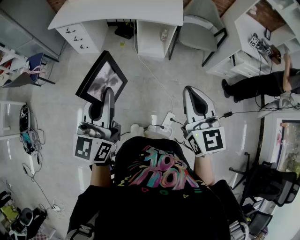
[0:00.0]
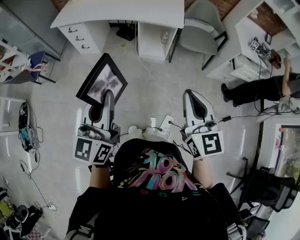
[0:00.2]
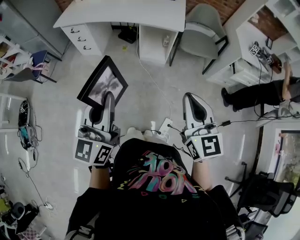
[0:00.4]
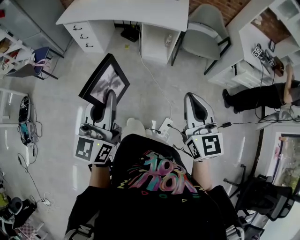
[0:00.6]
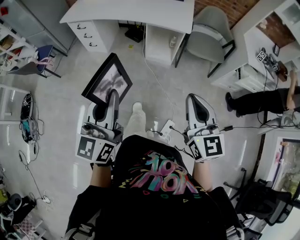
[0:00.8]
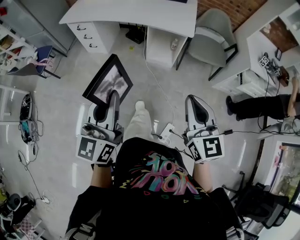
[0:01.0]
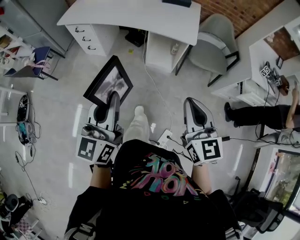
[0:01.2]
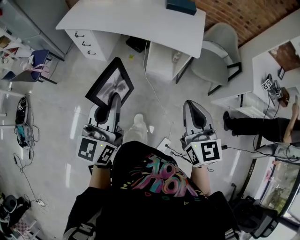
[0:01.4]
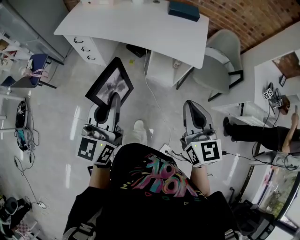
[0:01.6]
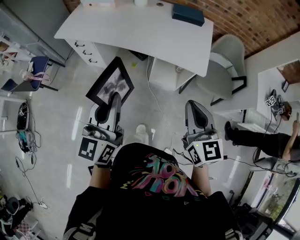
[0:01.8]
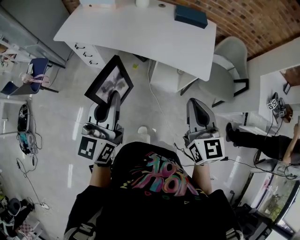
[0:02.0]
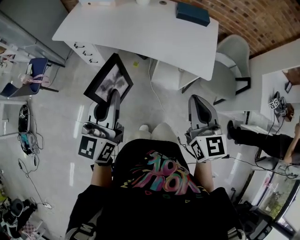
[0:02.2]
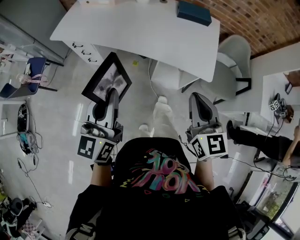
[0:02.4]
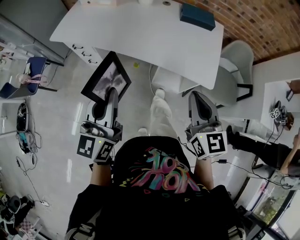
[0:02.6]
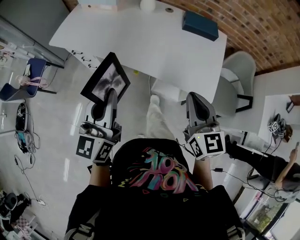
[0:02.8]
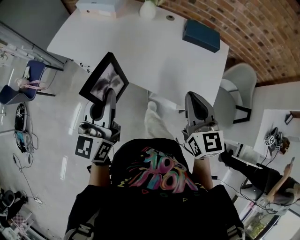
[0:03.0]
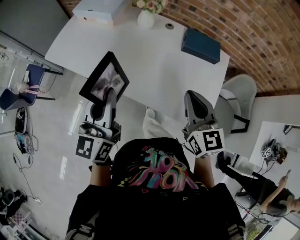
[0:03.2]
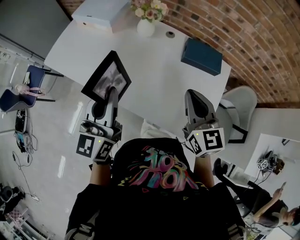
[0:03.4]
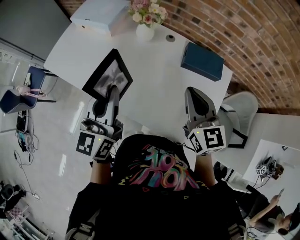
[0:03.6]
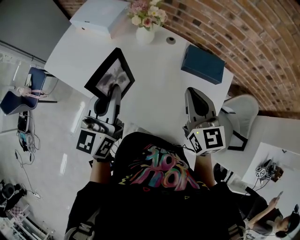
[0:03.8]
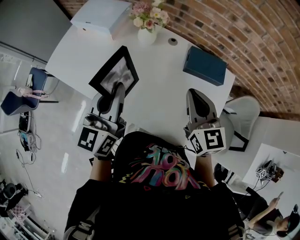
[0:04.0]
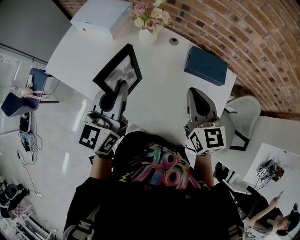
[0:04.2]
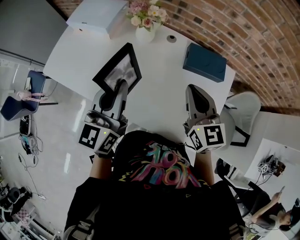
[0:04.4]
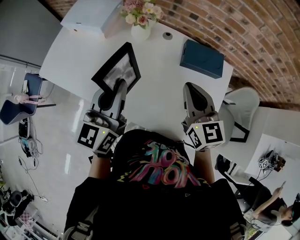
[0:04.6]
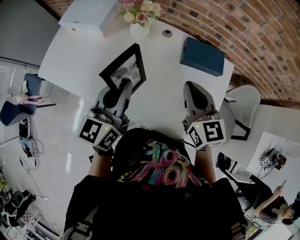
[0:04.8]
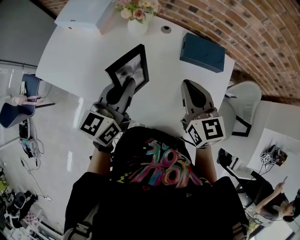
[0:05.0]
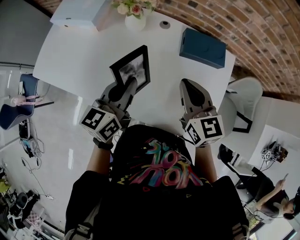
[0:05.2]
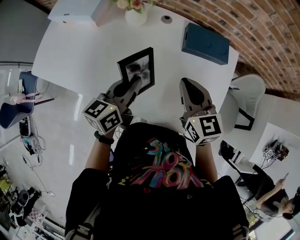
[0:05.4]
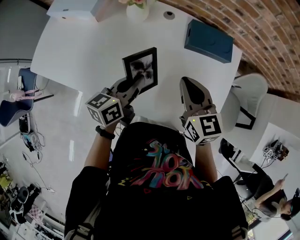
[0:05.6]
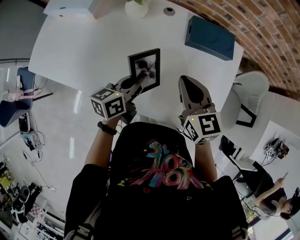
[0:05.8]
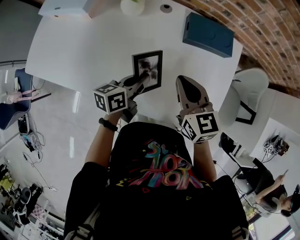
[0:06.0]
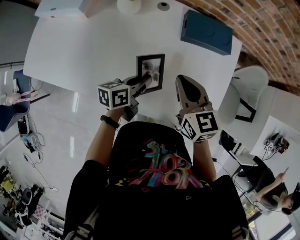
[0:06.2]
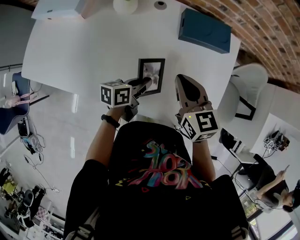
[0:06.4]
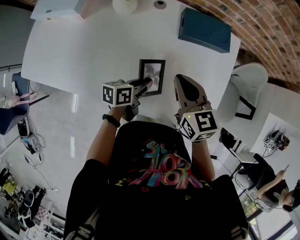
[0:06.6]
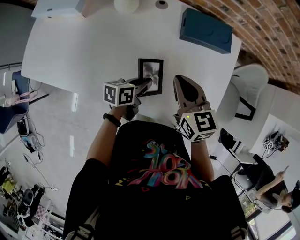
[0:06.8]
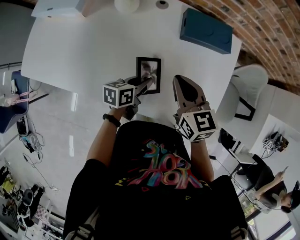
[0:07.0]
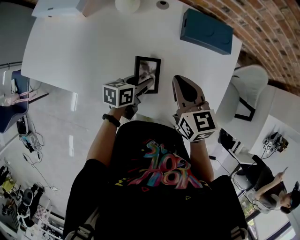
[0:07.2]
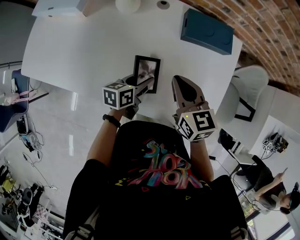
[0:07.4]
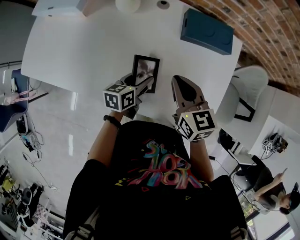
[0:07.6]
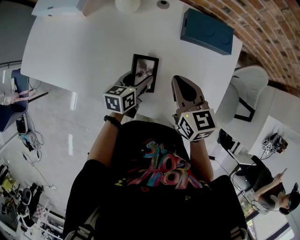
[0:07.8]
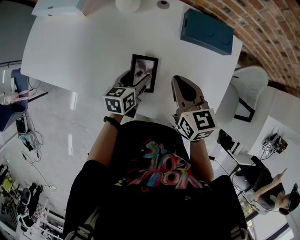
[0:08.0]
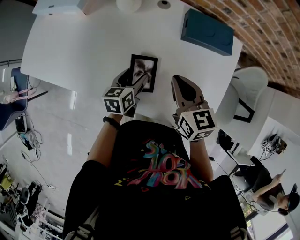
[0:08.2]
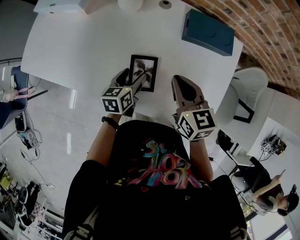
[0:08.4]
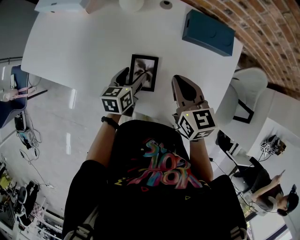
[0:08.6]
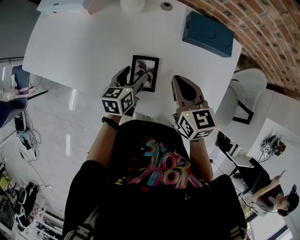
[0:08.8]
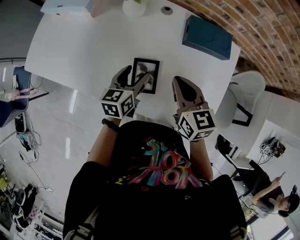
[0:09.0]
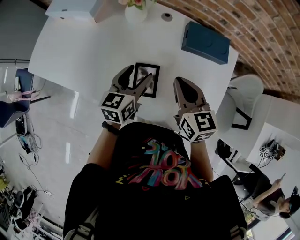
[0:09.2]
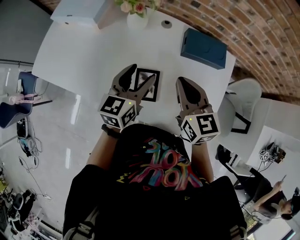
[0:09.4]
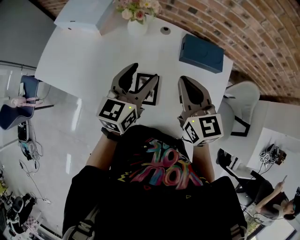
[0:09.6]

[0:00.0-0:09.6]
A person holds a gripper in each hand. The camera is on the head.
0:00.0 to 0:01.6: The grippers both shift forward by some 30 cm.
0:01.6 to 0:03.2: The pair of grippers is taken forward, some 50 cm.
0:03.2 to 0:04.8: The left gripper heads forward and to the right, covering roughly 20 cm. The right gripper is displaced forward by roughly 20 cm.
0:04.8 to 0:06.4: The left gripper shifts roughly 25 cm downward, and turns by roughly 50 degrees, while the right gripper moves downward, approximately 10 cm.
0:06.4 to 0:08.0: The left gripper shifts by approximately 5 cm, turns by some 30 degrees, and opens its fingers.
0:08.0 to 0:09.6: The right gripper goes about 15 cm upward; the left gripper heads upward, covering about 25 cm, and swivels about 30 degrees.

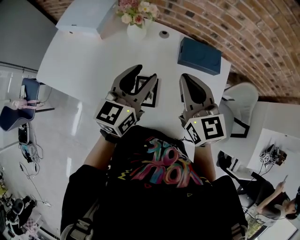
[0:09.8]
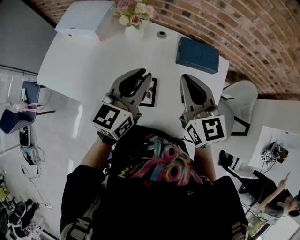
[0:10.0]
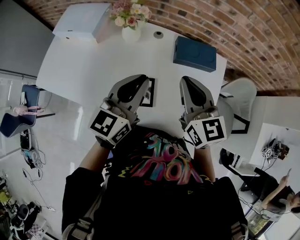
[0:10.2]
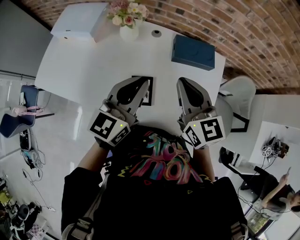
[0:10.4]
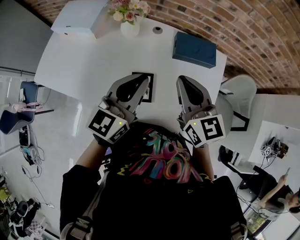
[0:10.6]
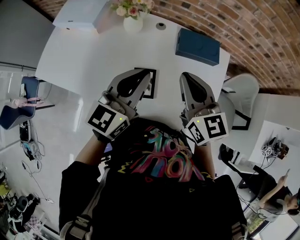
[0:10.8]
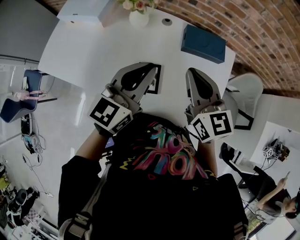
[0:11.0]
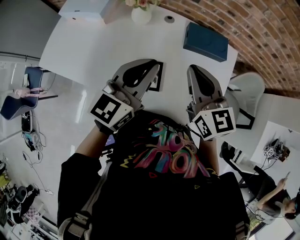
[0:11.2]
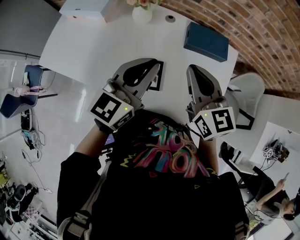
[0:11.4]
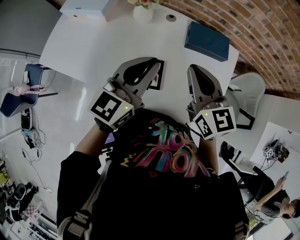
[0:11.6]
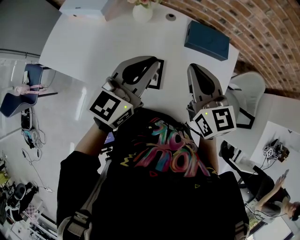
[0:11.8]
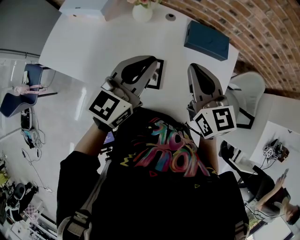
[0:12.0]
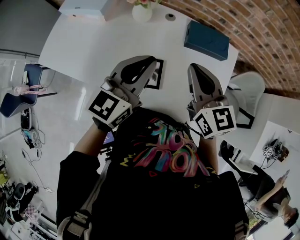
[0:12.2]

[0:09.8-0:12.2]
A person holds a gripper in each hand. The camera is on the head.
0:09.8 to 0:11.0: The left gripper moves about 5 cm, and closes its fingers.
0:11.0 to 0:12.2: Neither gripper changes place.

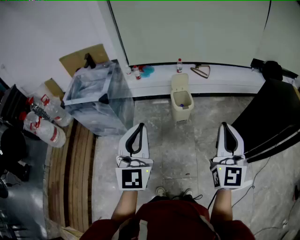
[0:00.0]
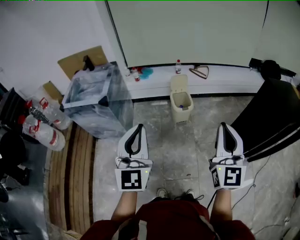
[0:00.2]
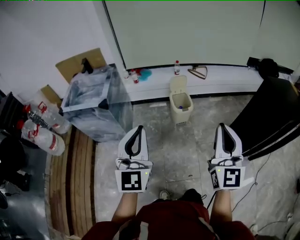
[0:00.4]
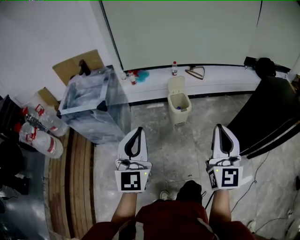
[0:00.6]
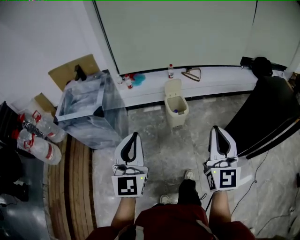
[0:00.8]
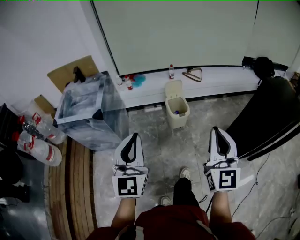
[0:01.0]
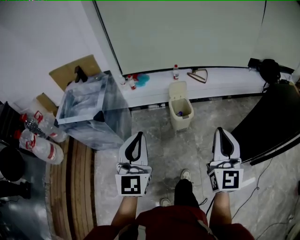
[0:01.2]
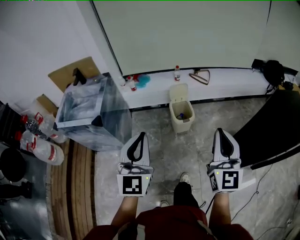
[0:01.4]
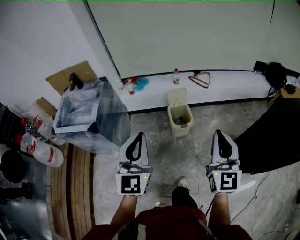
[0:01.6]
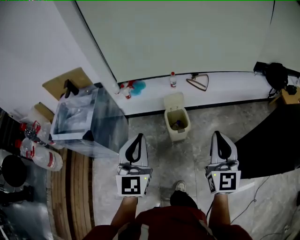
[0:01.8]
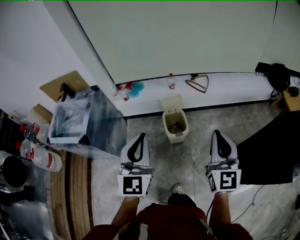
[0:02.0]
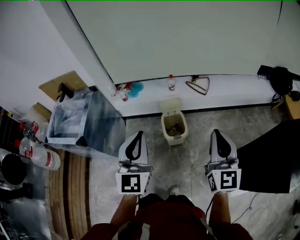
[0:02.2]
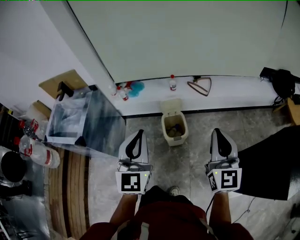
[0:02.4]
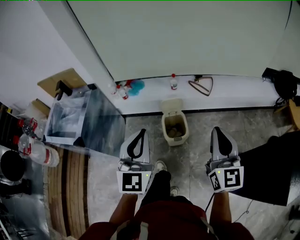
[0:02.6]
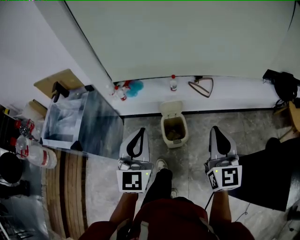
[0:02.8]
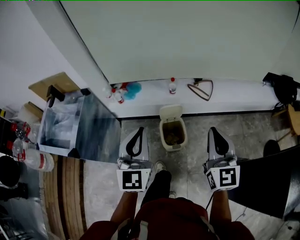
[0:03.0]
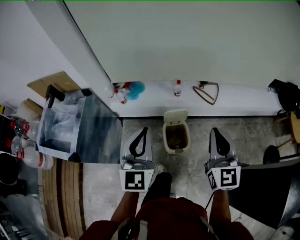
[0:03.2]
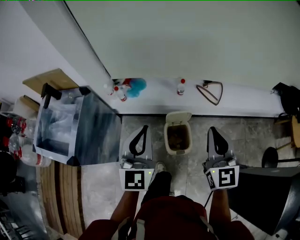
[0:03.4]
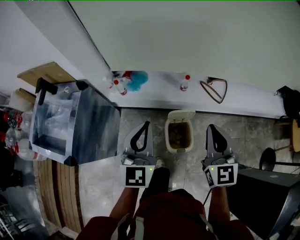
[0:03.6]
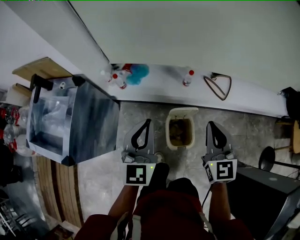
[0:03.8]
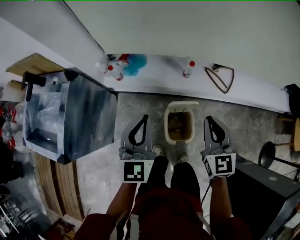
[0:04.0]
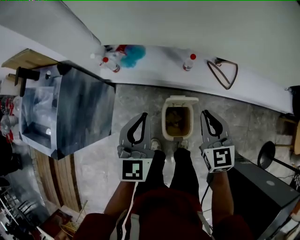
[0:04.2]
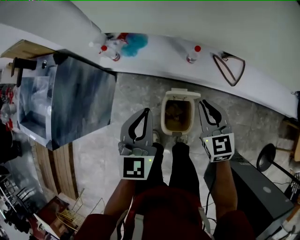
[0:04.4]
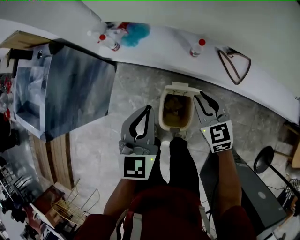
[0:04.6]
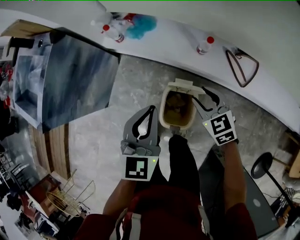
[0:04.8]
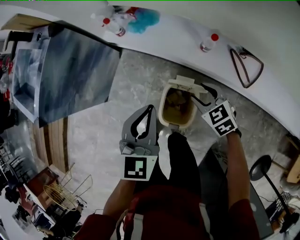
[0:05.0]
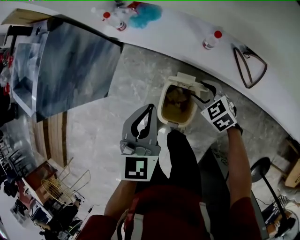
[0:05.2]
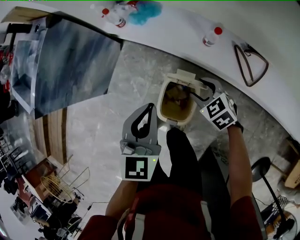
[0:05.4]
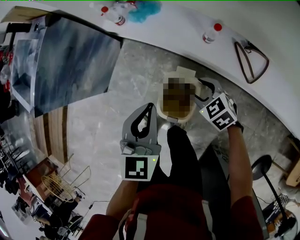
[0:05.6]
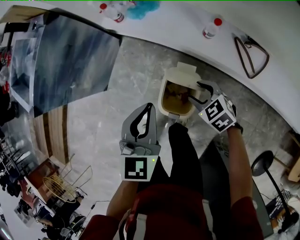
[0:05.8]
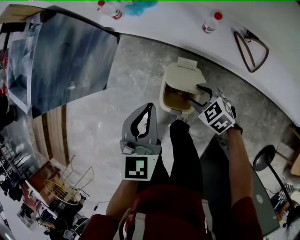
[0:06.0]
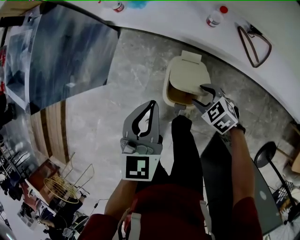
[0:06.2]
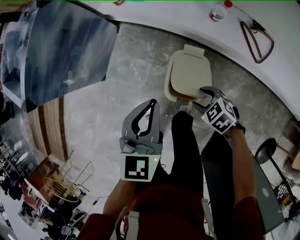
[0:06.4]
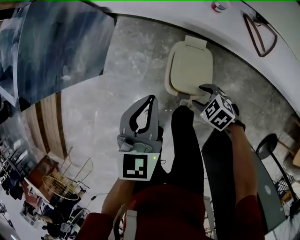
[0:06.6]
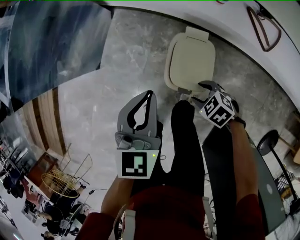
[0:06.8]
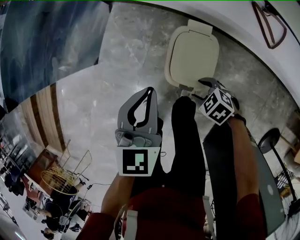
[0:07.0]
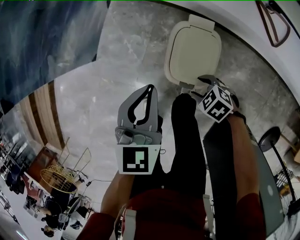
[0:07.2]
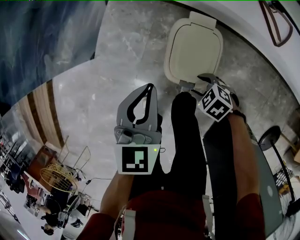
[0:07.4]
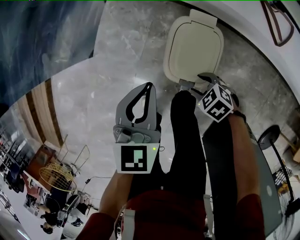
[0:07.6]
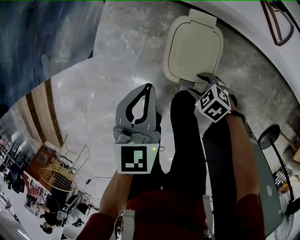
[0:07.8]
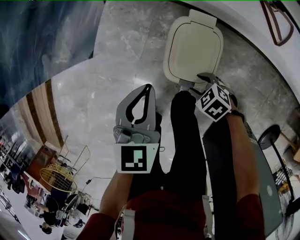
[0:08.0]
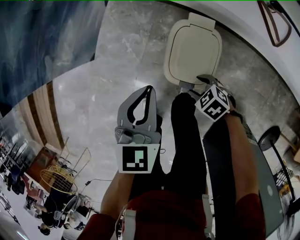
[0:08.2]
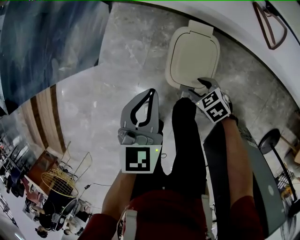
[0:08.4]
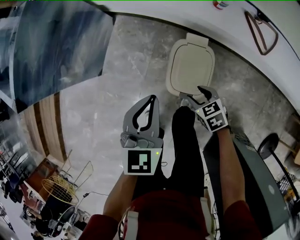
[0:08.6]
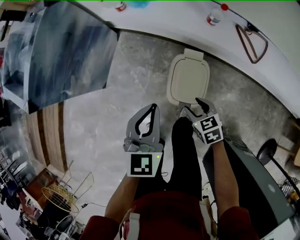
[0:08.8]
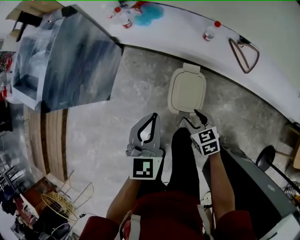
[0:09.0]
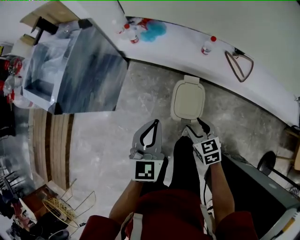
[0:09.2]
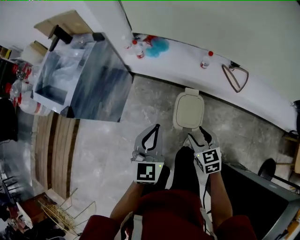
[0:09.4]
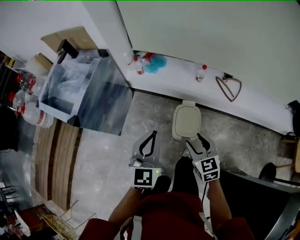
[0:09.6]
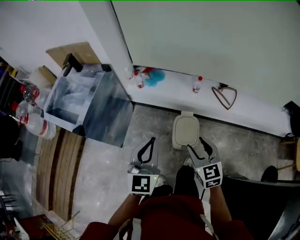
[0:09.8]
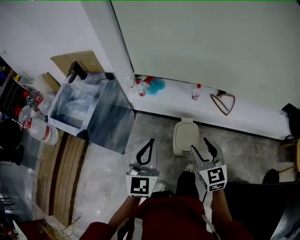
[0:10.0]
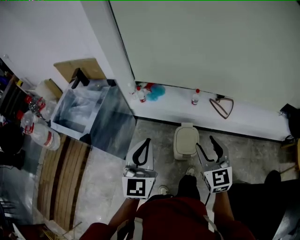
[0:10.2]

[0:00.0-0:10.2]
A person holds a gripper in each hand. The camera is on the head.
0:00.0 to 0:01.4: Both grippers travel together forward, roughly 15 cm.
0:01.4 to 0:03.0: The two grippers go about 35 cm forward.
0:03.0 to 0:04.4: Both grippers move forward and downward, some 35 cm. The right gripper rotates some 40 degrees; the left gripper turns by roughly 20 degrees.
0:04.4 to 0:05.8: The left gripper travels downward by about 10 cm. The right gripper travels downward by some 20 cm, rotates some 50 degrees, and opens its fingers.
0:05.8 to 0:07.2: The right gripper goes some 25 cm downward, to the left and backward, and turns by roughly 20 degrees; the left gripper shifts roughly 15 cm downward and to the left.
0:07.2 to 0:08.8: The two grippers go roughly 10 cm upward. The right gripper turns by roughly 40 degrees.
0:08.8 to 0:10.2: Both grippers move upward, approximately 40 cm. The right gripper tilts its fingers roughly 40 degrees upward. Meanwhile the left gripper turns by roughly 30 degrees.

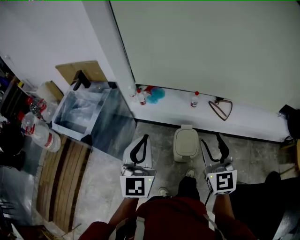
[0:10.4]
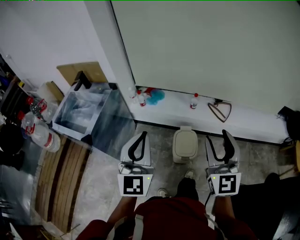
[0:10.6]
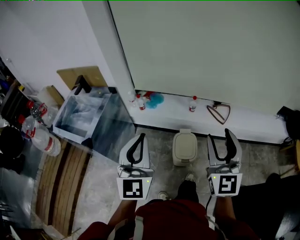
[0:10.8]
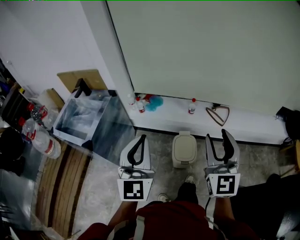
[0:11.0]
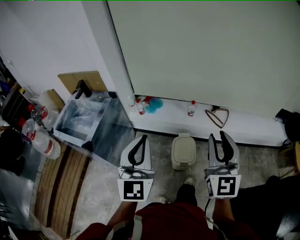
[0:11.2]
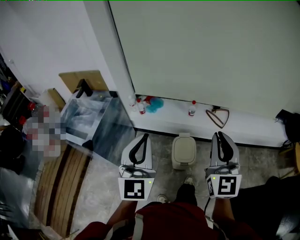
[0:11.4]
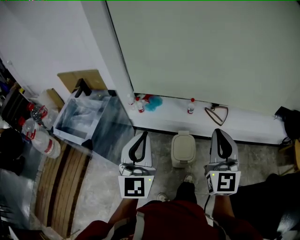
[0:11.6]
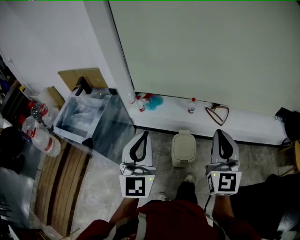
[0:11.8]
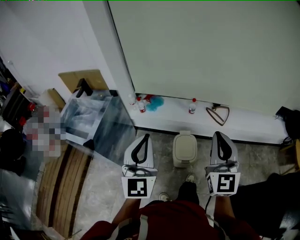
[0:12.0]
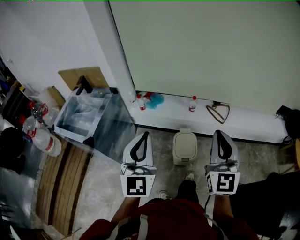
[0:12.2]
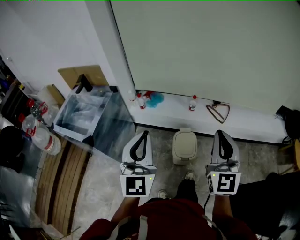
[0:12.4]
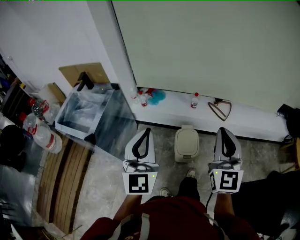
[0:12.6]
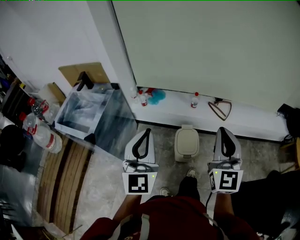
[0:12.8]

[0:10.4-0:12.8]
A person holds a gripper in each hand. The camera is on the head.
0:10.4 to 0:11.6: The left gripper moves upward, roughly 5 cm; the right gripper heads upward, covering roughly 10 cm, and closes.
0:11.6 to 0:12.8: There are only small adjustments of the grippers.
